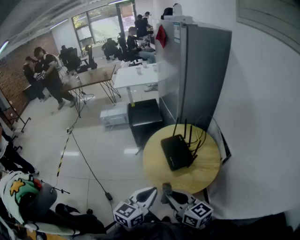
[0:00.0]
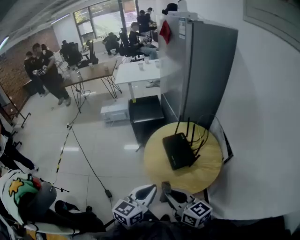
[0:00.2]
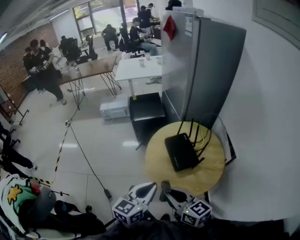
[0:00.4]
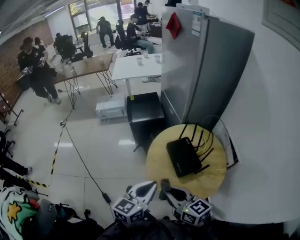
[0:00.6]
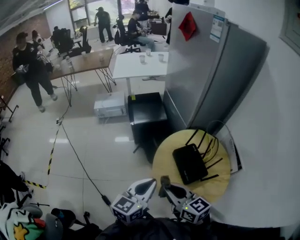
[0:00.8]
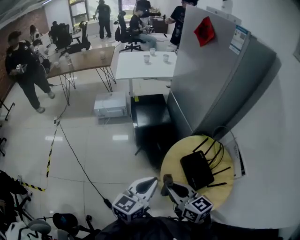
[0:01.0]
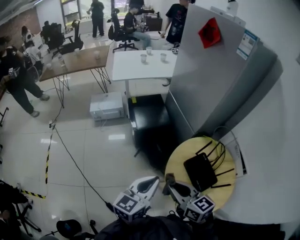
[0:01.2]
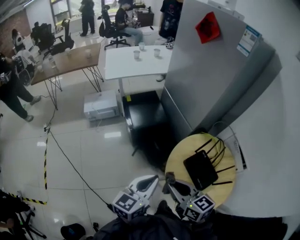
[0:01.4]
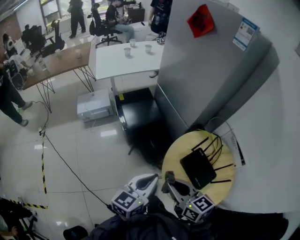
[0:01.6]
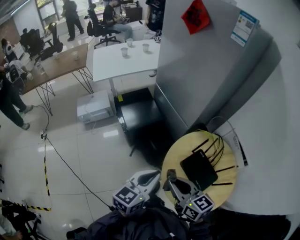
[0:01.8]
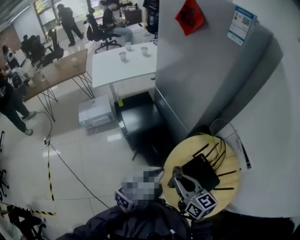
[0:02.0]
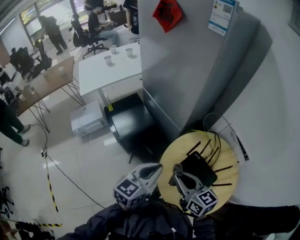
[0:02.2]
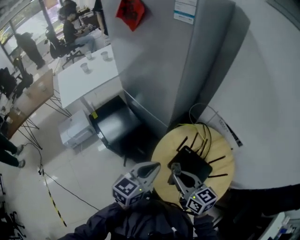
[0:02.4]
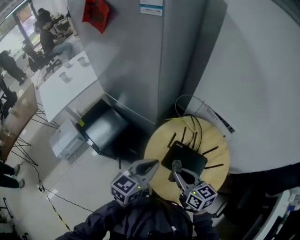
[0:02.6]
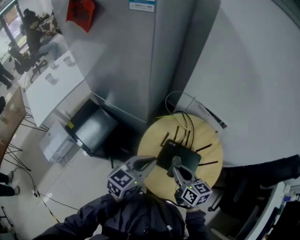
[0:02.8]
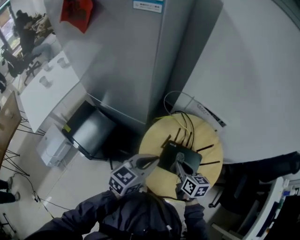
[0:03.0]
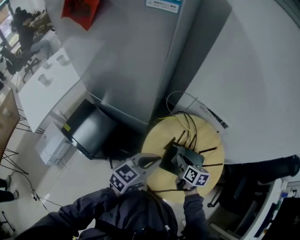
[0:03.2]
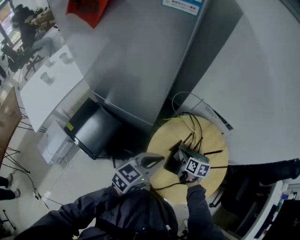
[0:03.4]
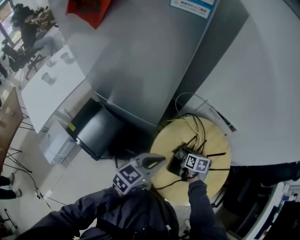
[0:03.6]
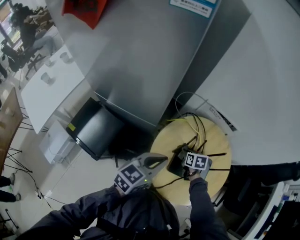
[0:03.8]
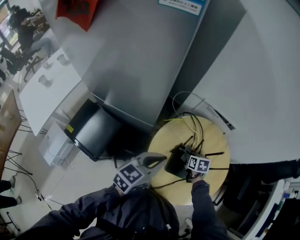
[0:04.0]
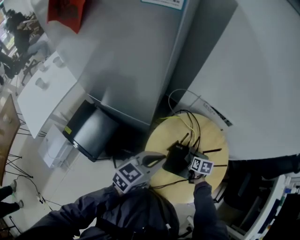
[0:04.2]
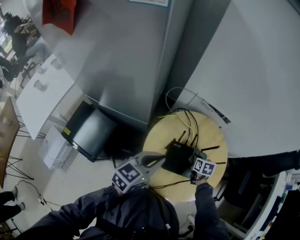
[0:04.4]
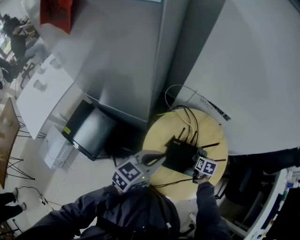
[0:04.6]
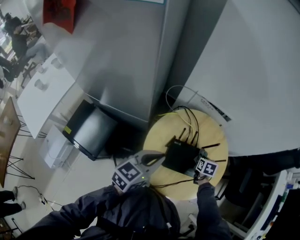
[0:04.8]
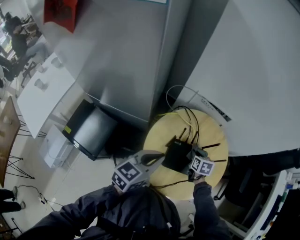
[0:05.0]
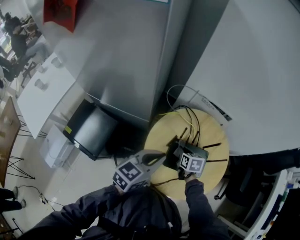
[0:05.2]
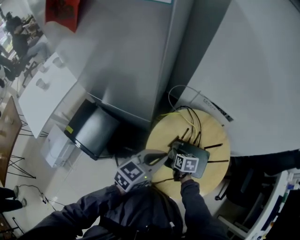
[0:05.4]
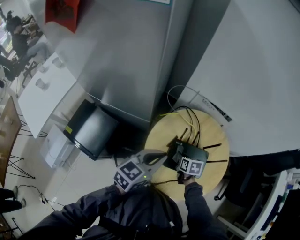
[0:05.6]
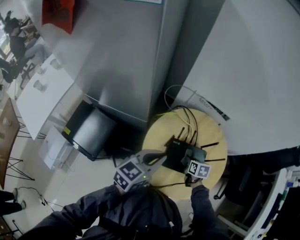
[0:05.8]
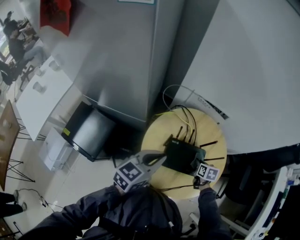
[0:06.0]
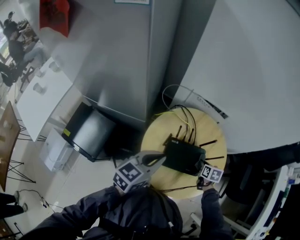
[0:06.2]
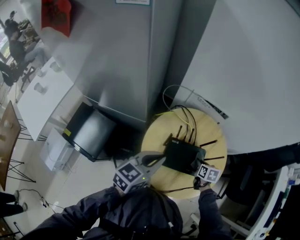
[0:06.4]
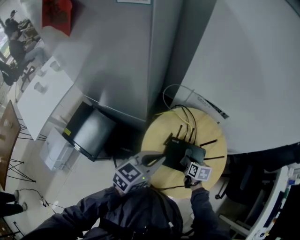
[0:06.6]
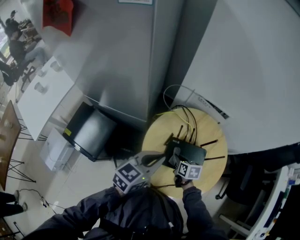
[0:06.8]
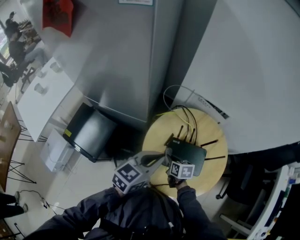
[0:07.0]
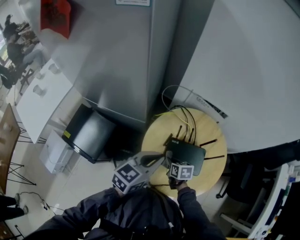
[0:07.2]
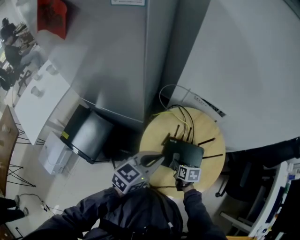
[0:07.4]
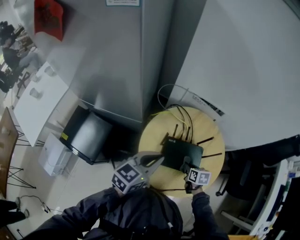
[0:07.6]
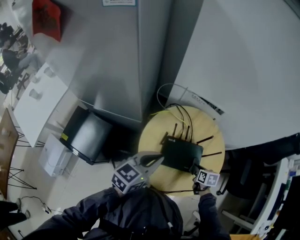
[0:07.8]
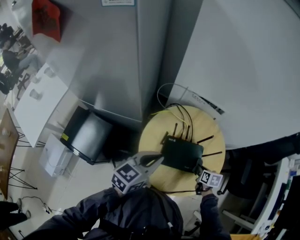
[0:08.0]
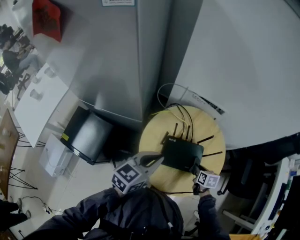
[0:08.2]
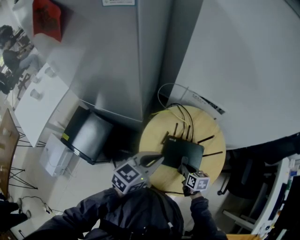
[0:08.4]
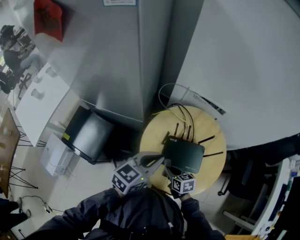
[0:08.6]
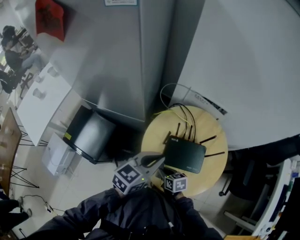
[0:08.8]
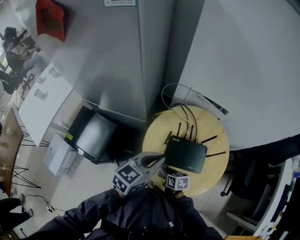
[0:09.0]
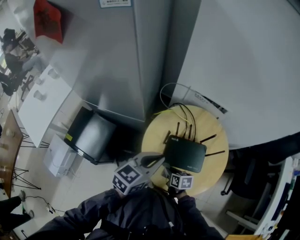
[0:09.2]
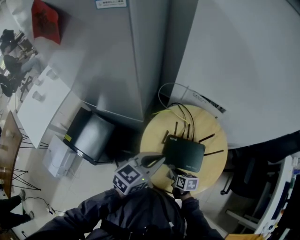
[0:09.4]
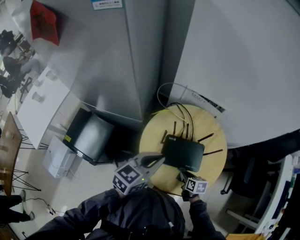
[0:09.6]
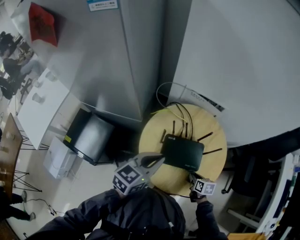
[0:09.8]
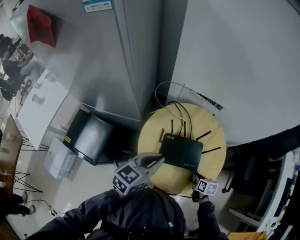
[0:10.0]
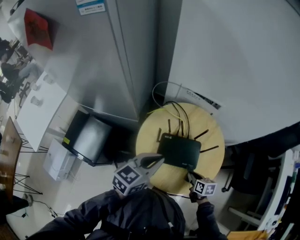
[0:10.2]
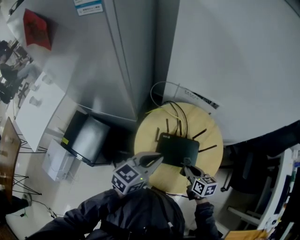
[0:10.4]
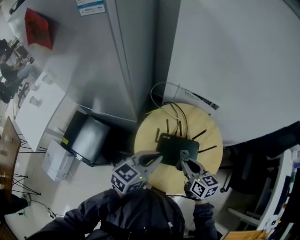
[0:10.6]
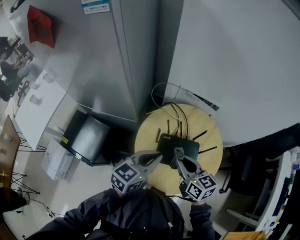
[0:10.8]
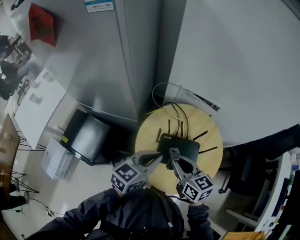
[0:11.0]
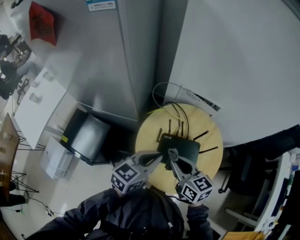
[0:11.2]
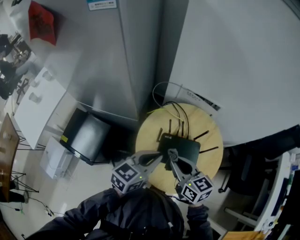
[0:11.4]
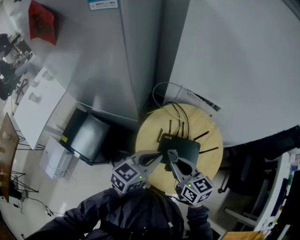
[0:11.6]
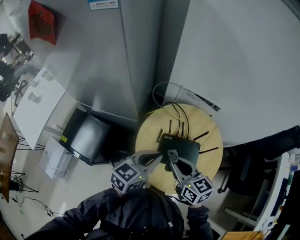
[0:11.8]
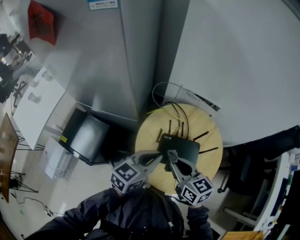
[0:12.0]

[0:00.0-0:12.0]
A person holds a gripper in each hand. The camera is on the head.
0:00.0 to 0:01.6: The grippers both shift forward and to the left by about 40 cm.
0:01.6 to 0:03.0: The right gripper moves roughly 30 cm, and swivels approximately 60 degrees. The left gripper shifts by roughly 25 cm, and swivels roughly 50 degrees.
0:03.0 to 0:04.4: The right gripper travels downward, to the right and forward by some 20 cm, and turns by about 30 degrees.
0:04.4 to 0:06.0: The right gripper moves left and right over some 20 cm, changing direction 2 times.
0:06.0 to 0:07.6: The right gripper heads backward, covering roughly 5 cm, and travels to the left and back again, roughly 20 cm each way.
0:07.6 to 0:09.0: The right gripper is displaced to the left and backward by approximately 15 cm.
0:09.0 to 0:10.4: The right gripper shifts approximately 20 cm to the right and upward.
0:10.4 to 0:12.0: The right gripper heads upward and to the left, covering roughly 20 cm, and rotates about 20 degrees.

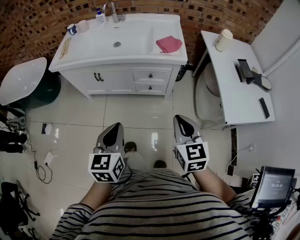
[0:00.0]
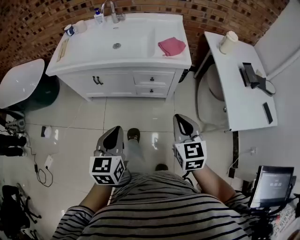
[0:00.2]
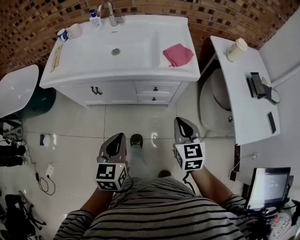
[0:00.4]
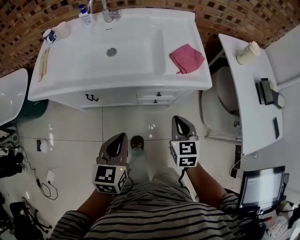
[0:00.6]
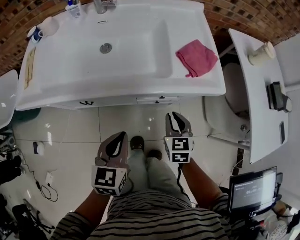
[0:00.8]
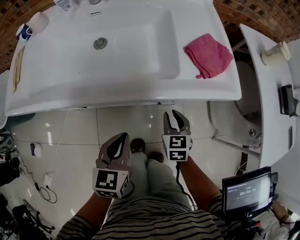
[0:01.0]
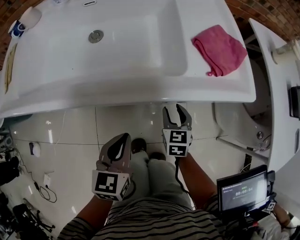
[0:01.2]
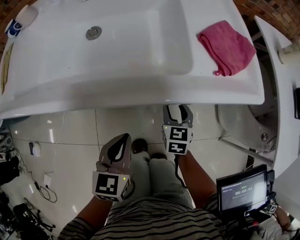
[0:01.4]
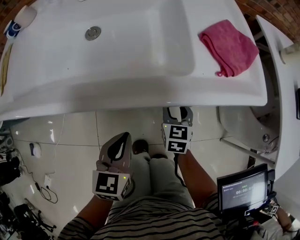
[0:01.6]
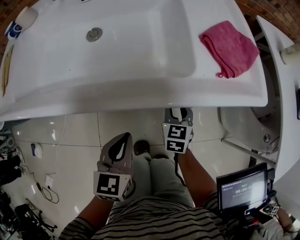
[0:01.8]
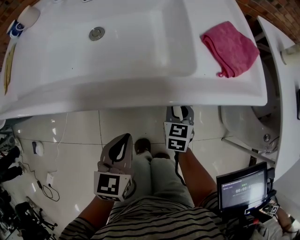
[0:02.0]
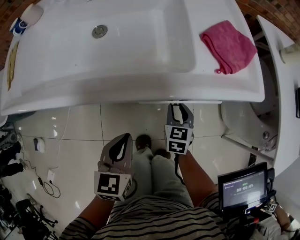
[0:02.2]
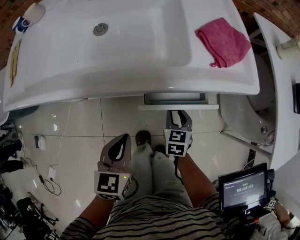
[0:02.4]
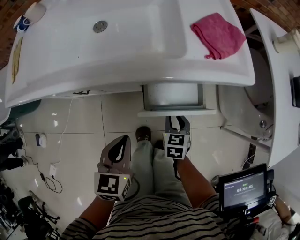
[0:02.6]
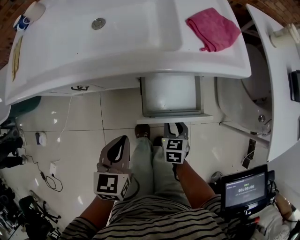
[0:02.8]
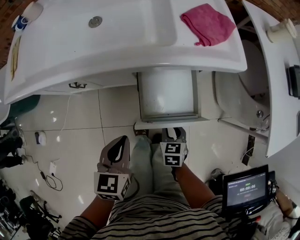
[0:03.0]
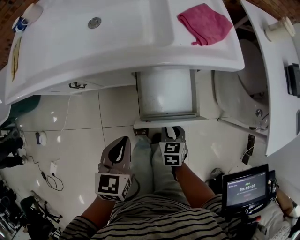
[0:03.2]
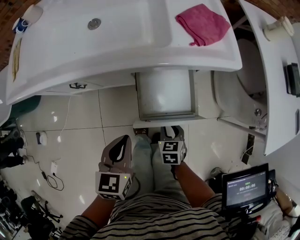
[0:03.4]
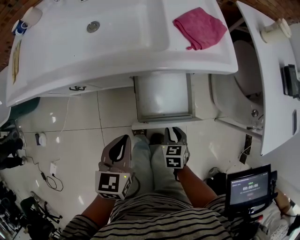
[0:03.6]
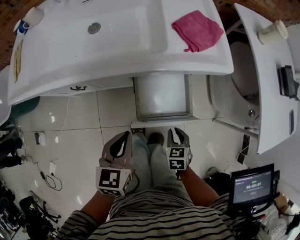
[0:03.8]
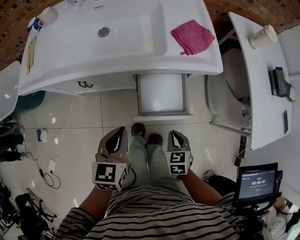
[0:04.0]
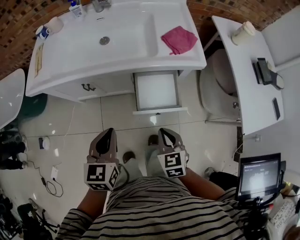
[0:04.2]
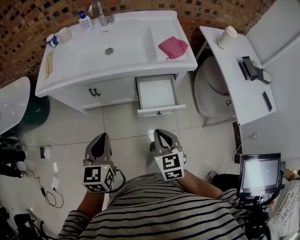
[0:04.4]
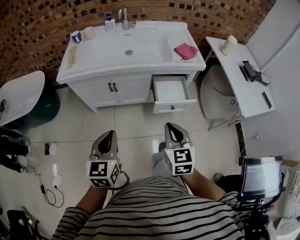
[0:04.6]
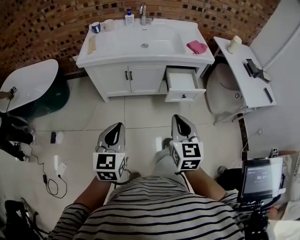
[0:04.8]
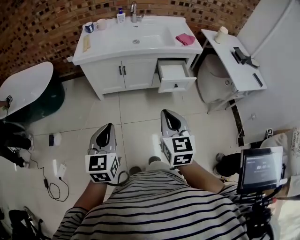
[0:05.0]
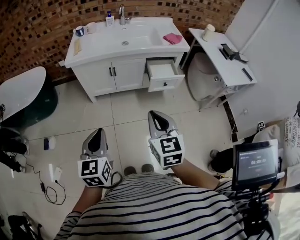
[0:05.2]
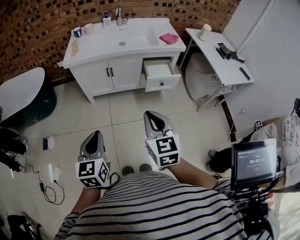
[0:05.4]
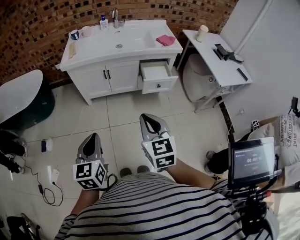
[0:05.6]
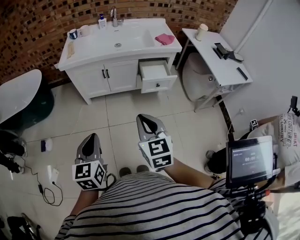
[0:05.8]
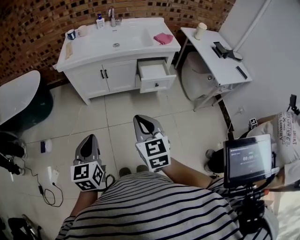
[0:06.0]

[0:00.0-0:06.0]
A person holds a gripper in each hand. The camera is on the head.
0:00.0 to 0:01.6: The left gripper heads forward and downward, covering some 50 cm. The right gripper is displaced downward and forward by roughly 60 cm, rotates about 20 degrees, and opens up.
0:01.6 to 0:03.0: The right gripper shifts about 20 cm backward; the left gripper shifts approximately 15 cm backward and upward.
0:03.0 to 0:04.4: The right gripper travels upward and backward by approximately 35 cm, rotates approximately 20 degrees, and closes up; the left gripper travels upward, backward and to the left by some 25 cm.
0:04.4 to 0:06.0: The right gripper travels backward, to the left and upward by some 35 cm. The left gripper is displaced backward and to the left by roughly 35 cm.

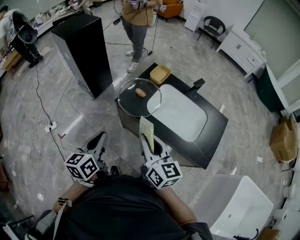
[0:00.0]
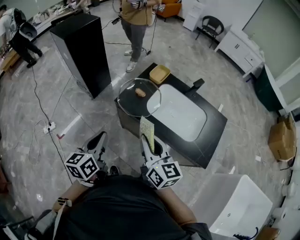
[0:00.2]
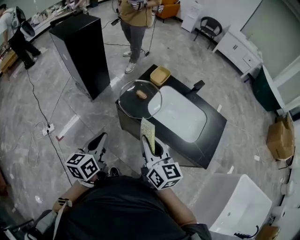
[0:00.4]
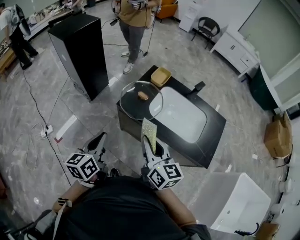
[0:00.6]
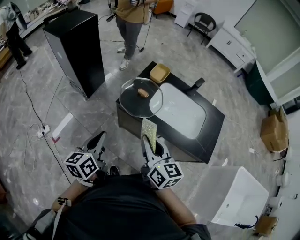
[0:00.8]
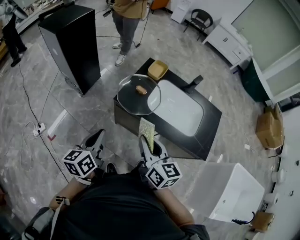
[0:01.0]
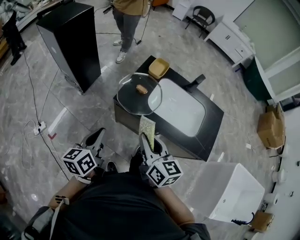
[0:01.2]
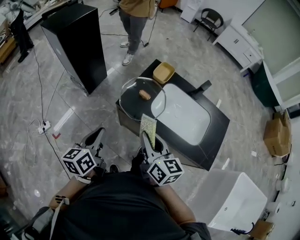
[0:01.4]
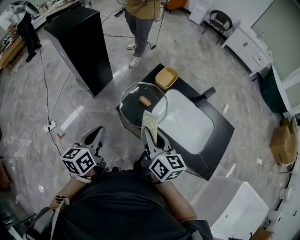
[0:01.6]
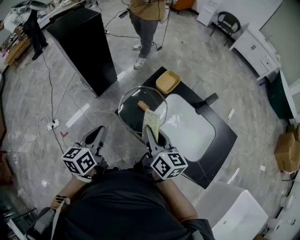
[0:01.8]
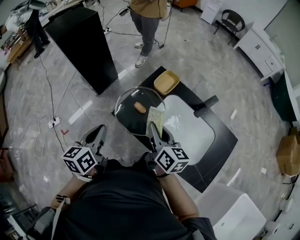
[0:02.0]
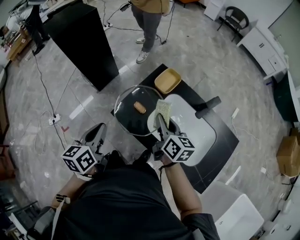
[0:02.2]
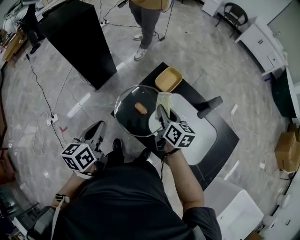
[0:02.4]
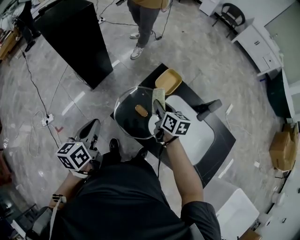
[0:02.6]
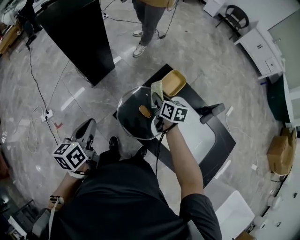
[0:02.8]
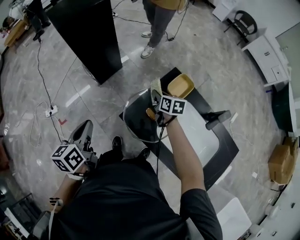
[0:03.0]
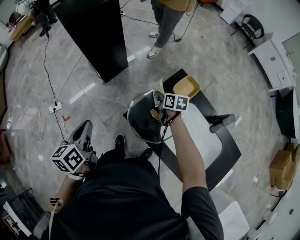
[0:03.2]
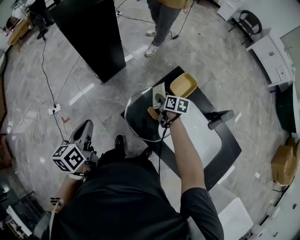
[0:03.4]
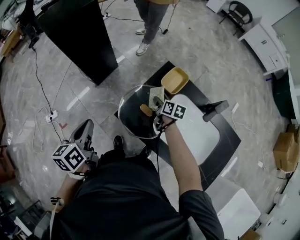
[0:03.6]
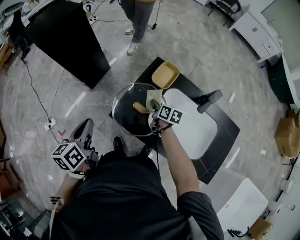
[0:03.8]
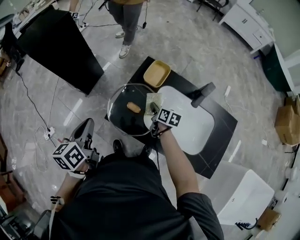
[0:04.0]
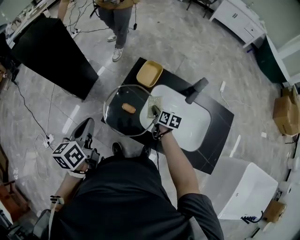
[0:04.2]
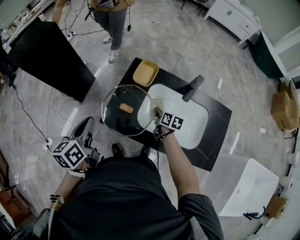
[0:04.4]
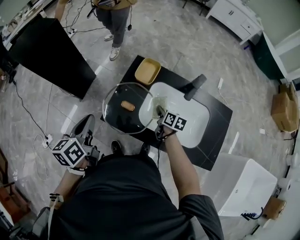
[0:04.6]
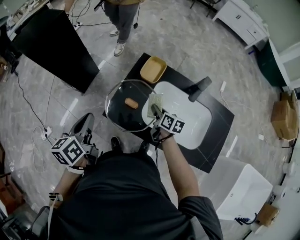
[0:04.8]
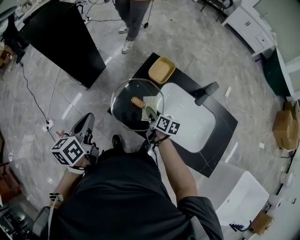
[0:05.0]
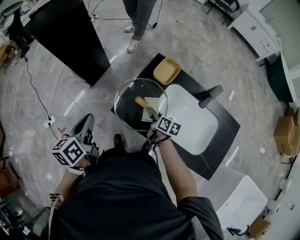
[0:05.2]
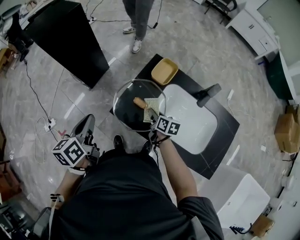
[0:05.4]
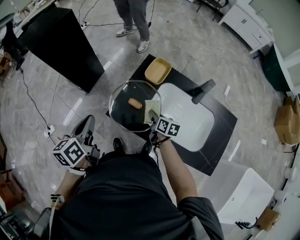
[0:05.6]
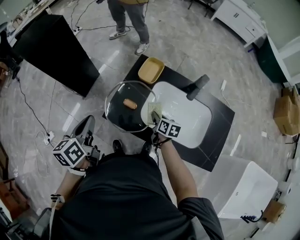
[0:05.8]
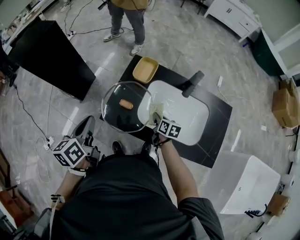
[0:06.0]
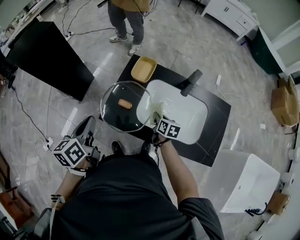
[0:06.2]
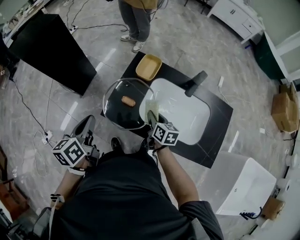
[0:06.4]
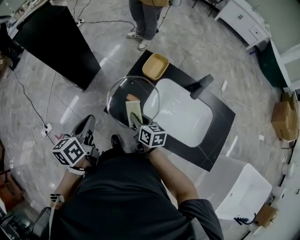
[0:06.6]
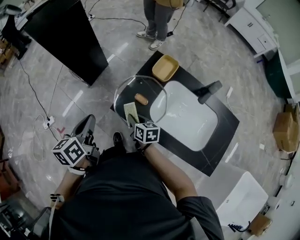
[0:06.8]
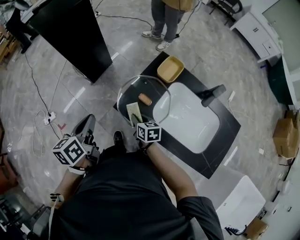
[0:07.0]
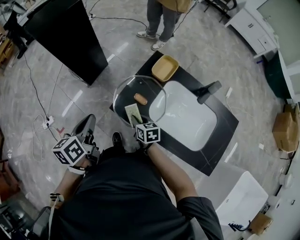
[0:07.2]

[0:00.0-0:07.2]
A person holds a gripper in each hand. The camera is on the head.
0:00.0 to 0:01.4: Both grippers move forward and to the left, approximately 10 cm.
0:01.4 to 0:02.8: The left gripper is displaced forward by some 15 cm. The right gripper heads forward and downward, covering some 40 cm, and changes its angle by some 20 degrees.
0:02.8 to 0:04.4: The right gripper shifts by some 20 cm, and swivels roughly 30 degrees; the left gripper changes place by about 10 cm.
0:05.8 to 0:07.2: The right gripper goes approximately 15 cm to the left, and rotates roughly 30 degrees. The left gripper shifts by roughly 5 cm.
